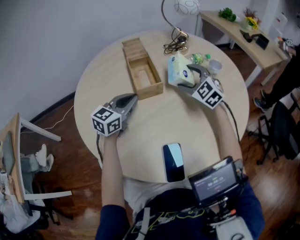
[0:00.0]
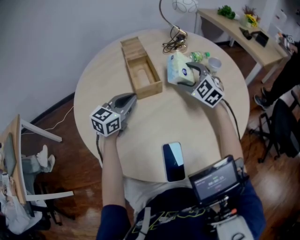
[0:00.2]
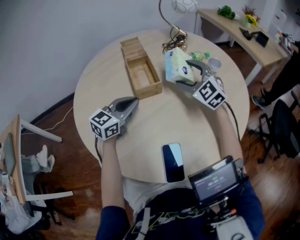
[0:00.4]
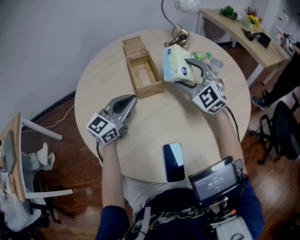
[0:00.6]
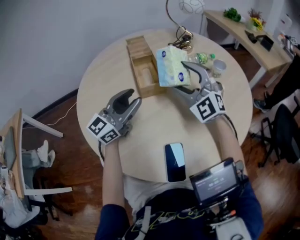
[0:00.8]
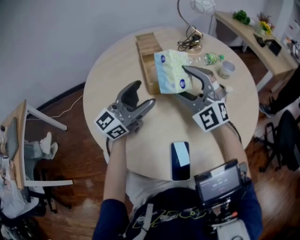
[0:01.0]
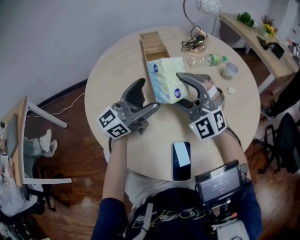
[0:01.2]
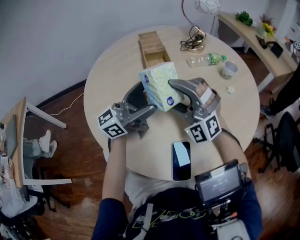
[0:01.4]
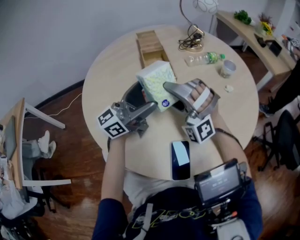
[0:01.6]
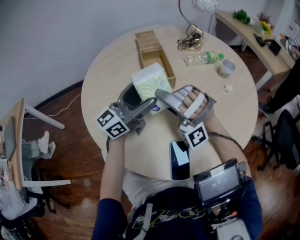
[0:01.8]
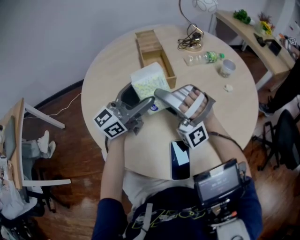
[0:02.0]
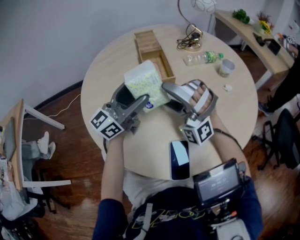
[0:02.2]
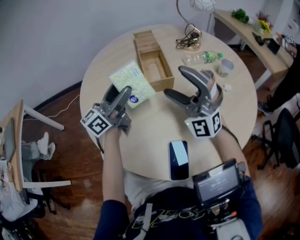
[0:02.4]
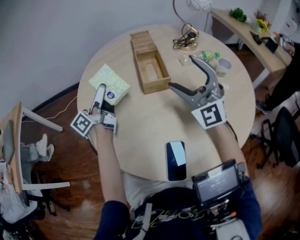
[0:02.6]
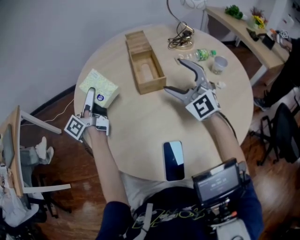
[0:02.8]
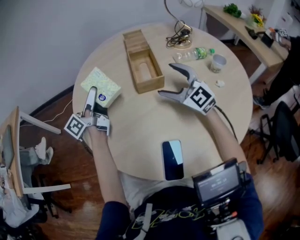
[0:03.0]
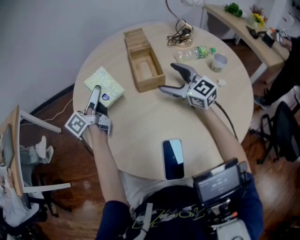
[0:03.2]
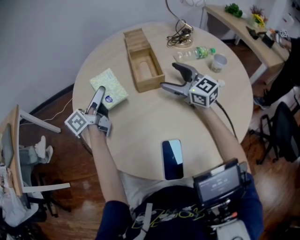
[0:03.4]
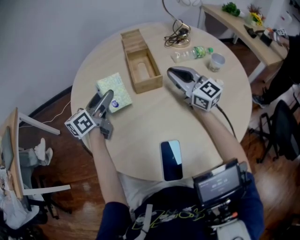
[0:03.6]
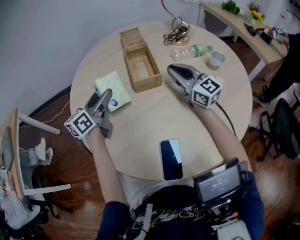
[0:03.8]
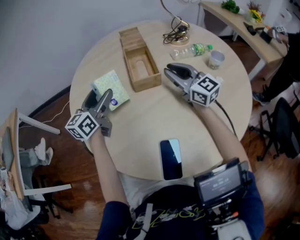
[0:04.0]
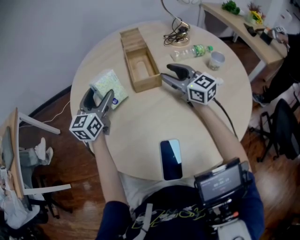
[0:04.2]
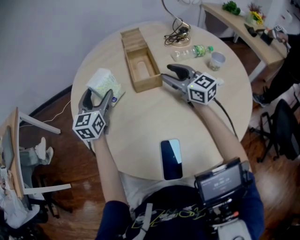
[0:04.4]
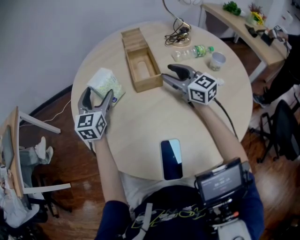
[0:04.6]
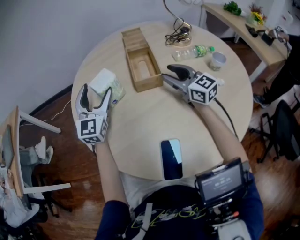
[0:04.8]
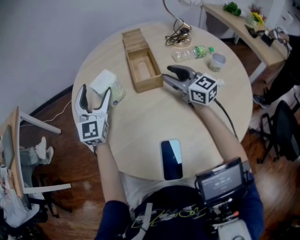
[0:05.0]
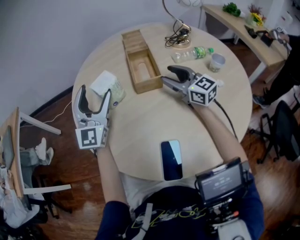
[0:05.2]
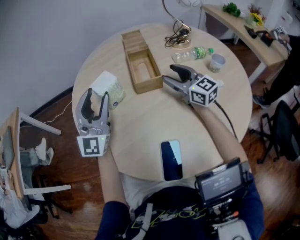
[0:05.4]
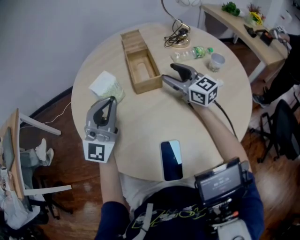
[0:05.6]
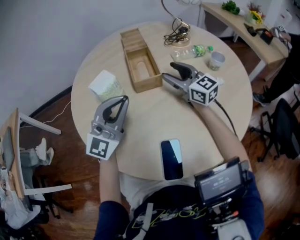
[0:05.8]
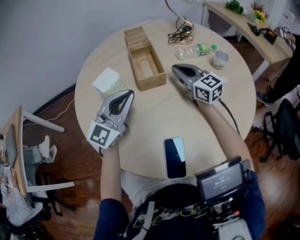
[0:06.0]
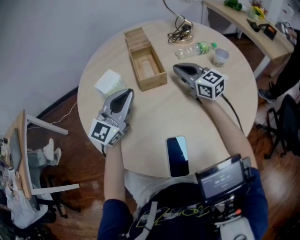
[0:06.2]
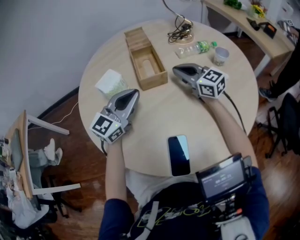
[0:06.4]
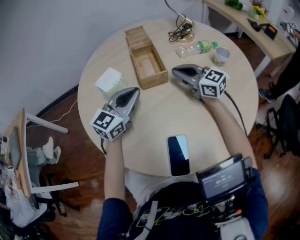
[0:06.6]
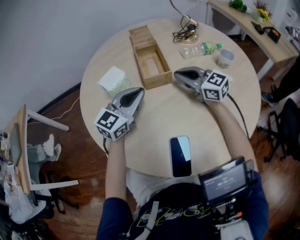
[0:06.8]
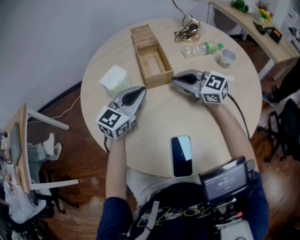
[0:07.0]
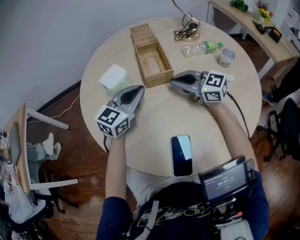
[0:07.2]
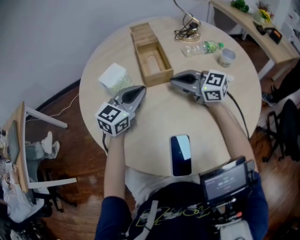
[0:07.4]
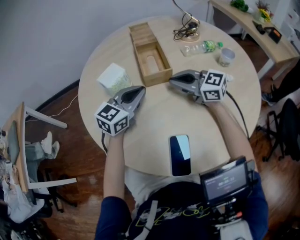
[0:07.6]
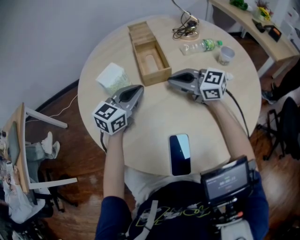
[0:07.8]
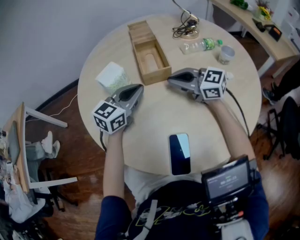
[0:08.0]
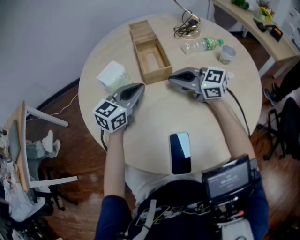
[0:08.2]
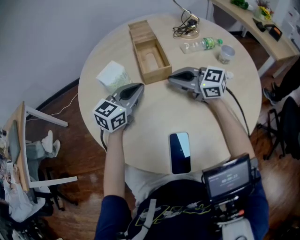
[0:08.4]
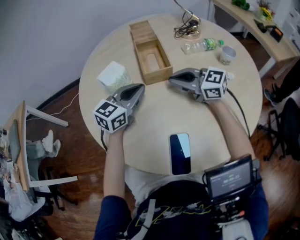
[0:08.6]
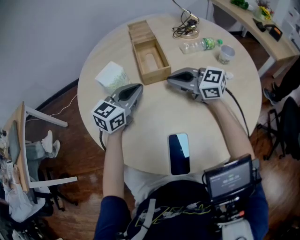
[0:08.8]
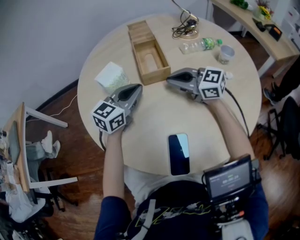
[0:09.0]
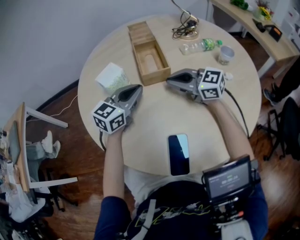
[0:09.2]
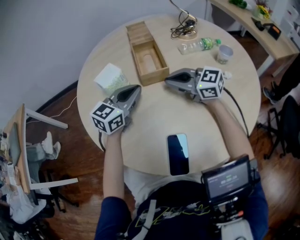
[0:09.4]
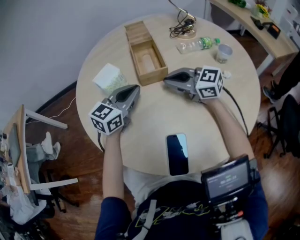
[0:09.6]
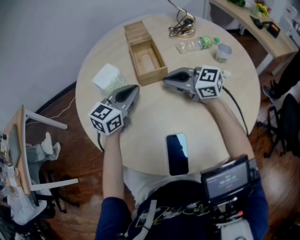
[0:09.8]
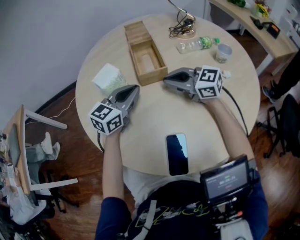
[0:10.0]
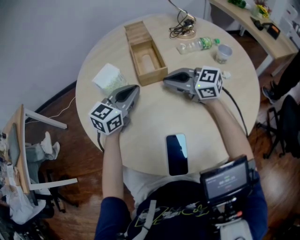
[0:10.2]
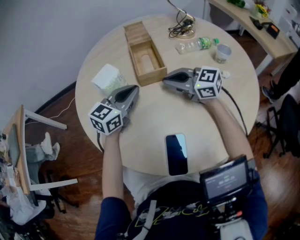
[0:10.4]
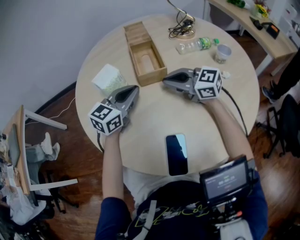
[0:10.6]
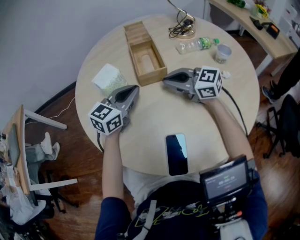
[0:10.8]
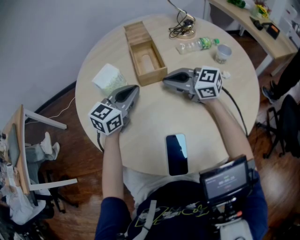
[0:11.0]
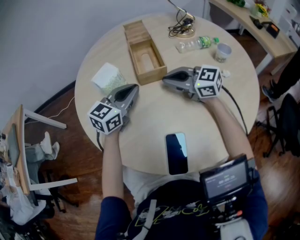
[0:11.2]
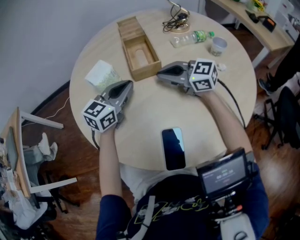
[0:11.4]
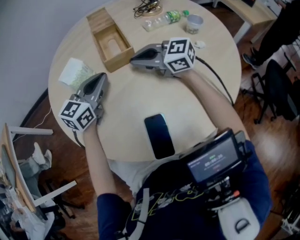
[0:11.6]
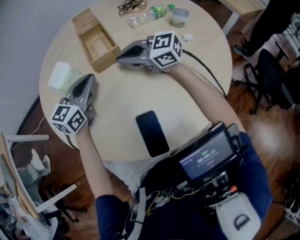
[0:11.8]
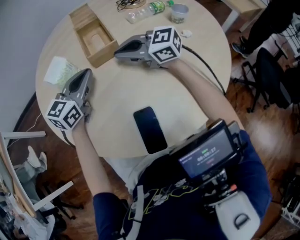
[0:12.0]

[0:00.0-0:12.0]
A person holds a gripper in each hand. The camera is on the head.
0:00.0 to 0:01.6: The right gripper travels backward and to the left by about 20 cm, and twists about 50 degrees counterclockwise, seen from behind; the left gripper shifts about 10 cm upward and backward, tips its fingers upward by about 40 degrees, and opens.
0:01.6 to 0:03.0: The left gripper heads to the left and forward, covering some 20 cm, and swivels some 40 degrees, while the right gripper heads forward and to the right, covering roughly 10 cm, and twists about 60 degrees clockwise, seen from behind.
0:03.0 to 0:04.4: The right gripper changes its angle by roughly 30 degrees, and closes. Meanwhile the left gripper twists about 60 degrees clockwise, seen from behind.
0:04.4 to 0:06.0: The right gripper closes its fingers, while the left gripper goes some 15 cm to the right, backward and upward, rotates about 40 degrees, and closes up.
0:06.0 to 0:07.6: The right gripper is displaced to the left and backward by approximately 10 cm, and swivels approximately 30 degrees. Meanwhile the left gripper travels downward by about 5 cm, and changes its angle by roughly 30 degrees.
0:07.6 to 0:12.0: The two grippers keep their place.

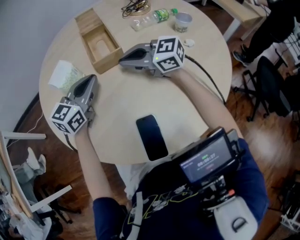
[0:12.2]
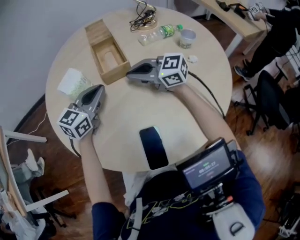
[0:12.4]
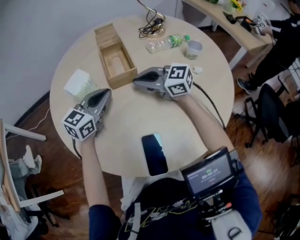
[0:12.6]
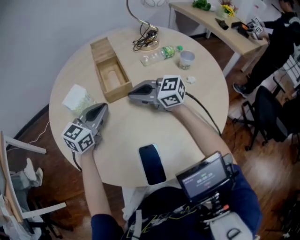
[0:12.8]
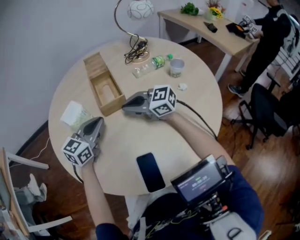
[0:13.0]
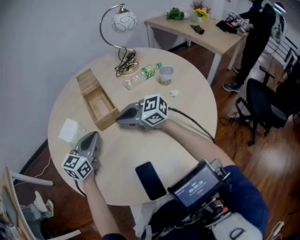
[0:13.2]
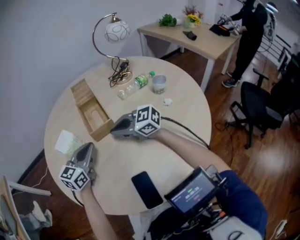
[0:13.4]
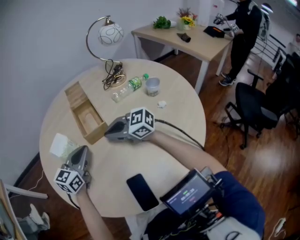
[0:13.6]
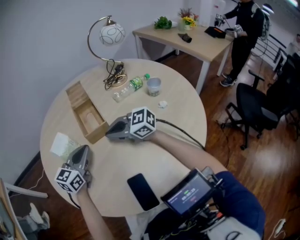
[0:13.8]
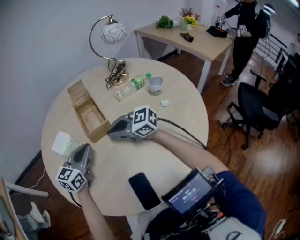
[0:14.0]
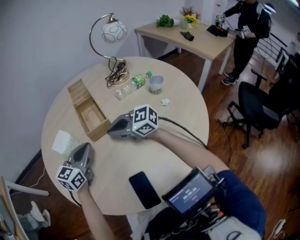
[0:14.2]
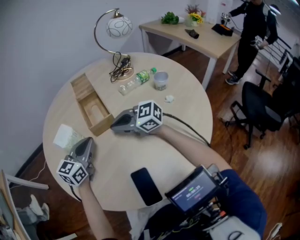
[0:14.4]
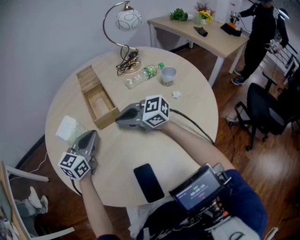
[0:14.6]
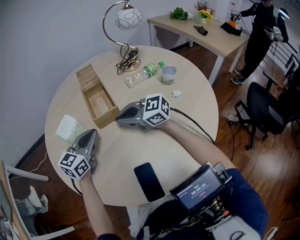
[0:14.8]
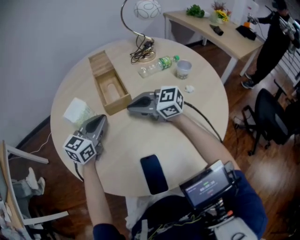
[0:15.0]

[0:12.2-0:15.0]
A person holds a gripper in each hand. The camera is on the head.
0:12.2 to 0:13.6: Both grippers stay about where they are.
0:13.6 to 0:15.0: The grippers make only small movements.

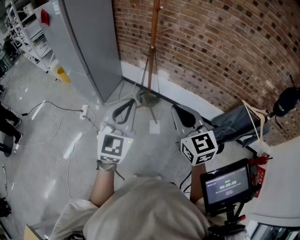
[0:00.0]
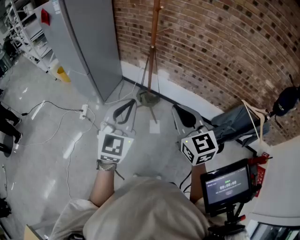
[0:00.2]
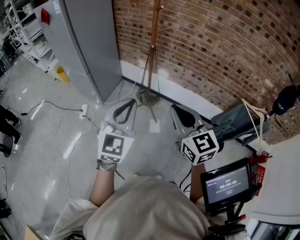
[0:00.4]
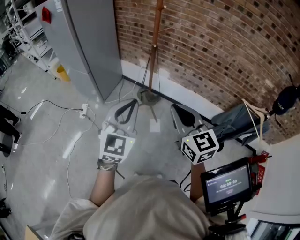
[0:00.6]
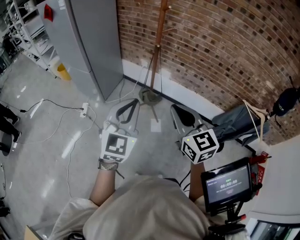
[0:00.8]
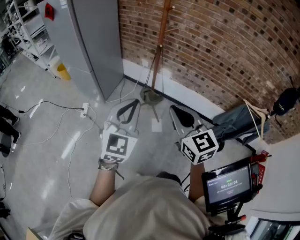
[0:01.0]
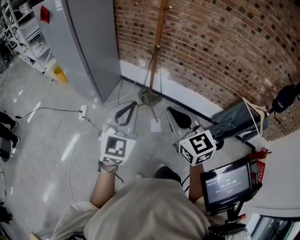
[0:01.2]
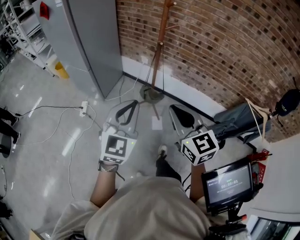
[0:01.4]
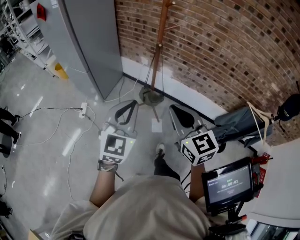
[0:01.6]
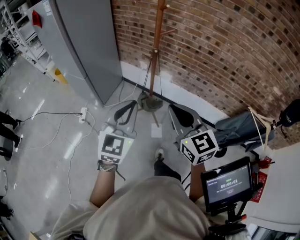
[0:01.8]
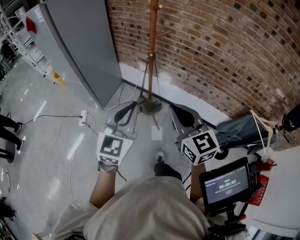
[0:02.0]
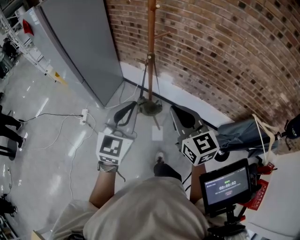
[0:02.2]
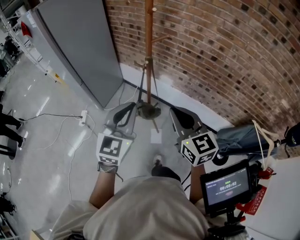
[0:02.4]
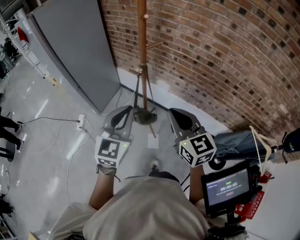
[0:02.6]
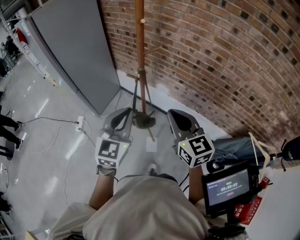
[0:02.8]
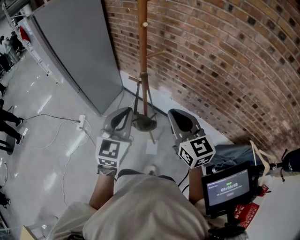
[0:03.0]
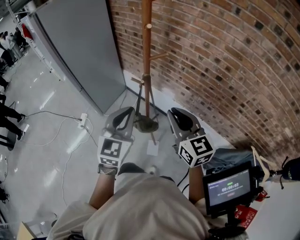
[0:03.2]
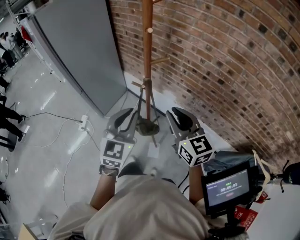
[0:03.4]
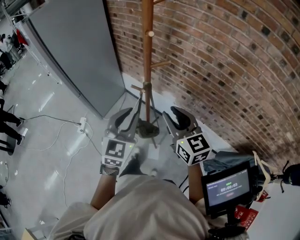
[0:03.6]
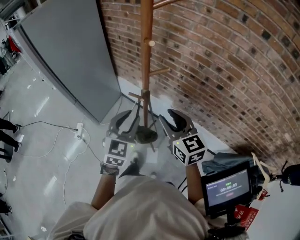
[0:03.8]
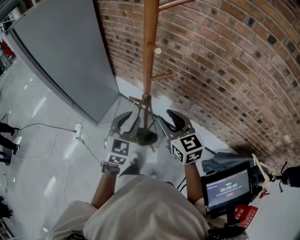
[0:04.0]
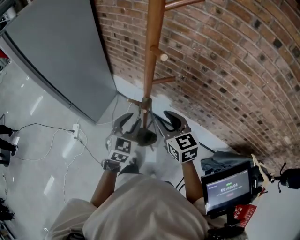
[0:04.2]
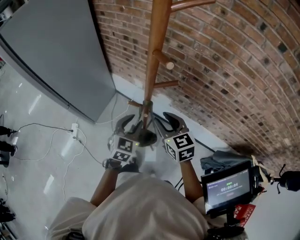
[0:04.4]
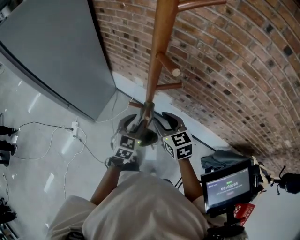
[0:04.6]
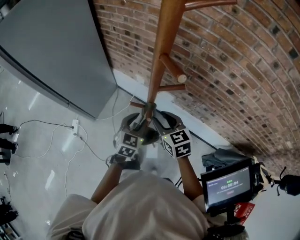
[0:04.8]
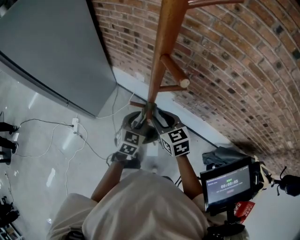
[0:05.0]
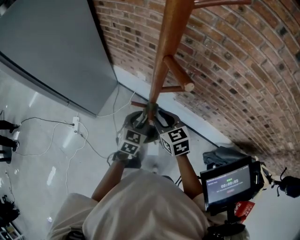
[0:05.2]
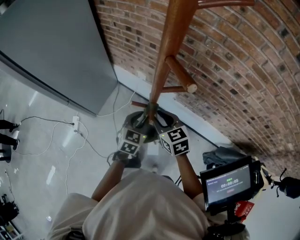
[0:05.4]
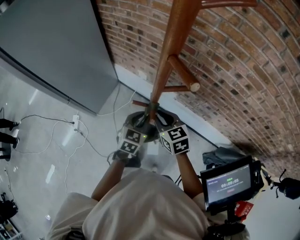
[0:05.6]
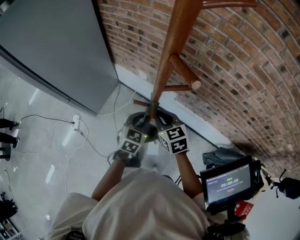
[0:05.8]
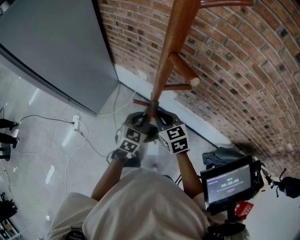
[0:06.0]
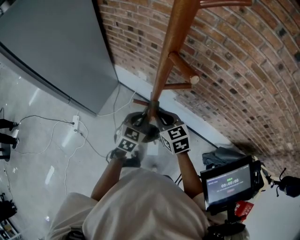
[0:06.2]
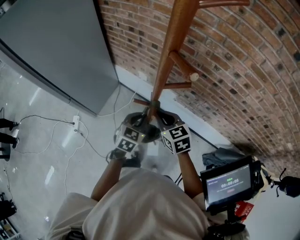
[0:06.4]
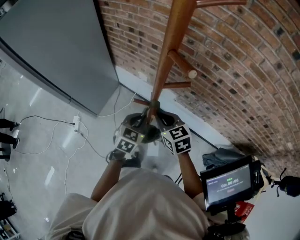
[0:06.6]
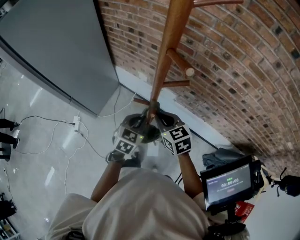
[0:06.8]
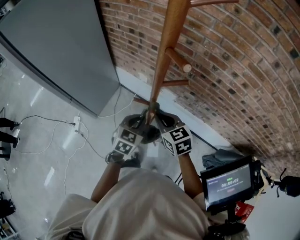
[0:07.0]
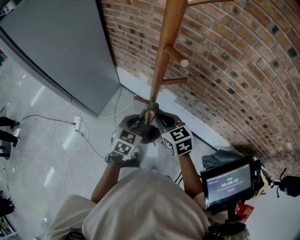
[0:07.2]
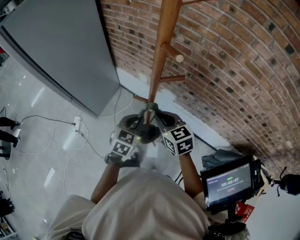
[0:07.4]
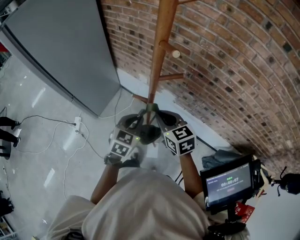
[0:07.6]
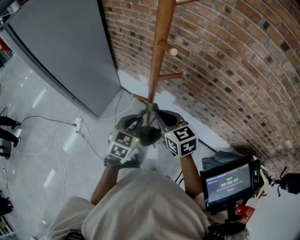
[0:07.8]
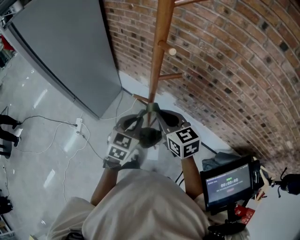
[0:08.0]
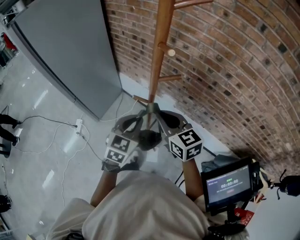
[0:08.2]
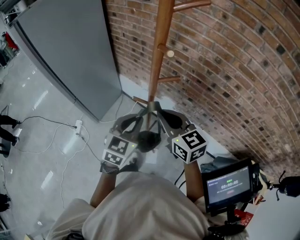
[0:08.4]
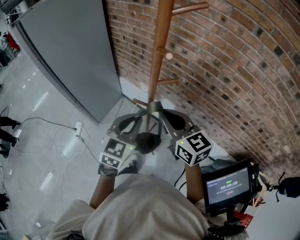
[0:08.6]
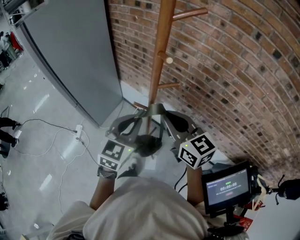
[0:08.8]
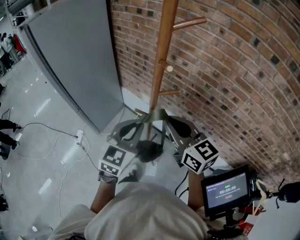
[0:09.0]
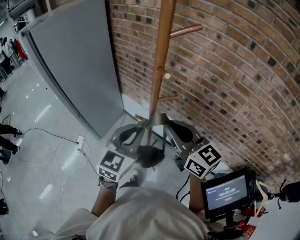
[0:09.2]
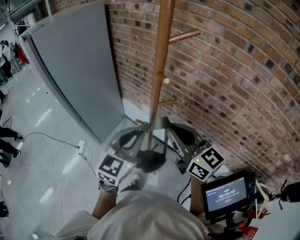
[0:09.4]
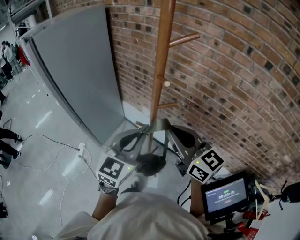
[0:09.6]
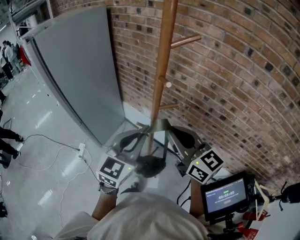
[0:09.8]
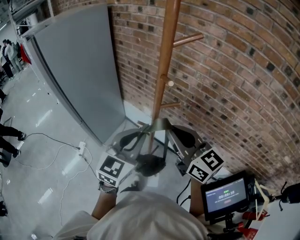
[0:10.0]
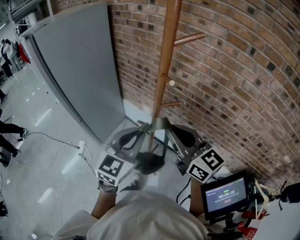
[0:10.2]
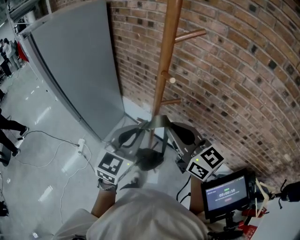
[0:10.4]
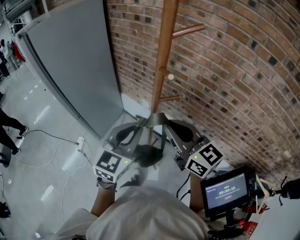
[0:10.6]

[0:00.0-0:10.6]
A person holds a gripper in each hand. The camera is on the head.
0:00.0 to 0:01.6: The left gripper ends up about 5 cm from where it was. Meanwhile the right gripper moves about 5 cm.
0:01.6 to 0:03.0: Both grippers travel together forward and to the right, some 25 cm.
0:03.0 to 0:04.6: The grippers both shift forward and downward by about 25 cm. The right gripper swivels some 20 degrees, and opens. Meanwhile the left gripper swivels about 20 degrees, and opens.
0:04.6 to 0:06.0: The right gripper shifts by approximately 5 cm, and closes its fingers, while the left gripper closes.
0:06.0 to 0:07.6: The left gripper shifts by approximately 5 cm; the right gripper heads upward, covering some 5 cm.
0:07.6 to 0:09.0: Both grippers move upward, some 15 cm. The right gripper rotates about 20 degrees.
0:09.0 to 0:10.6: There are only small adjustments of the grippers.
